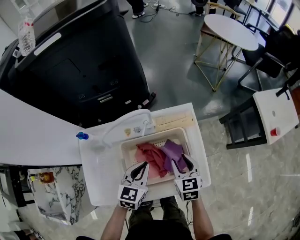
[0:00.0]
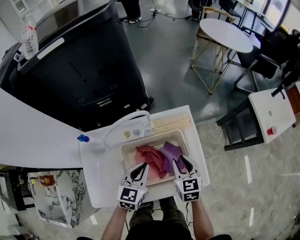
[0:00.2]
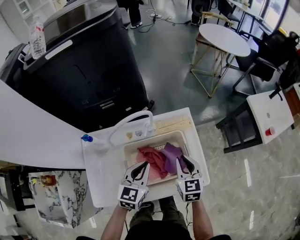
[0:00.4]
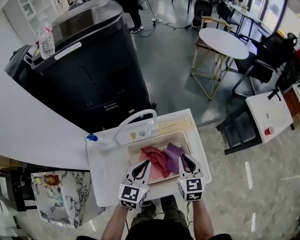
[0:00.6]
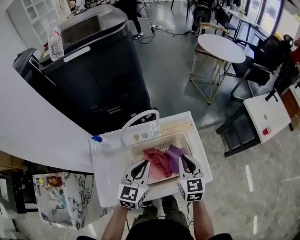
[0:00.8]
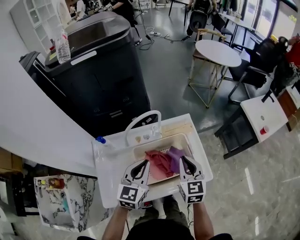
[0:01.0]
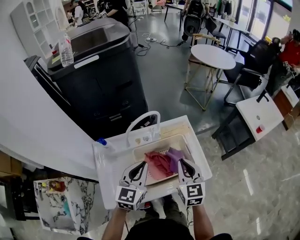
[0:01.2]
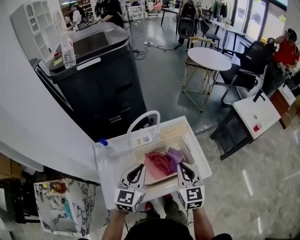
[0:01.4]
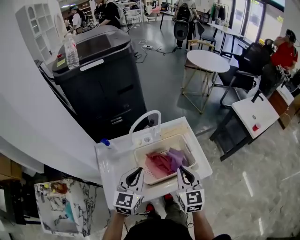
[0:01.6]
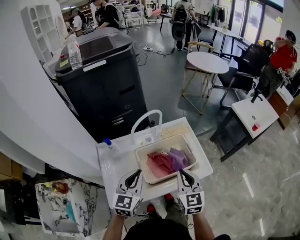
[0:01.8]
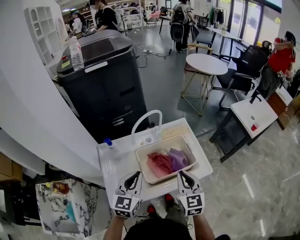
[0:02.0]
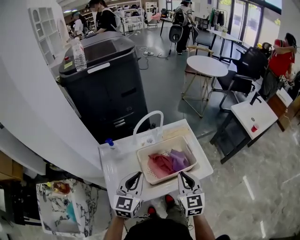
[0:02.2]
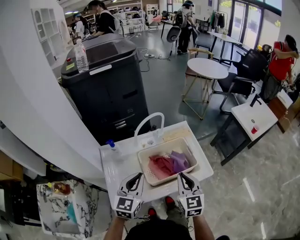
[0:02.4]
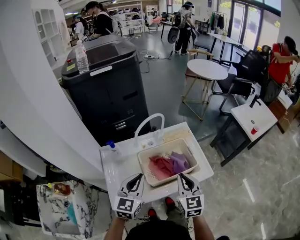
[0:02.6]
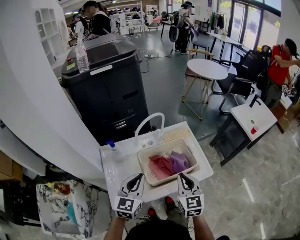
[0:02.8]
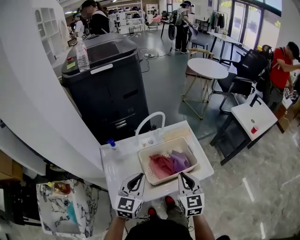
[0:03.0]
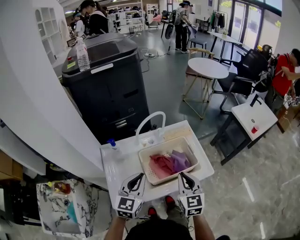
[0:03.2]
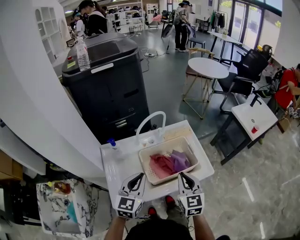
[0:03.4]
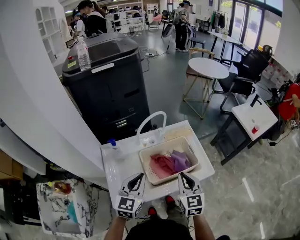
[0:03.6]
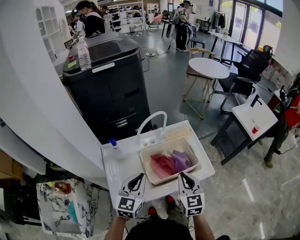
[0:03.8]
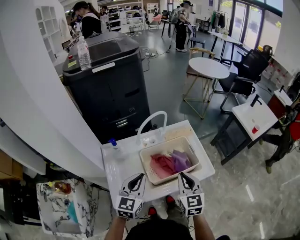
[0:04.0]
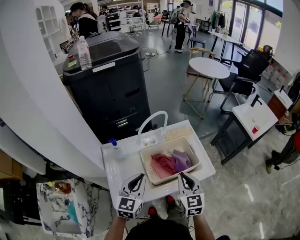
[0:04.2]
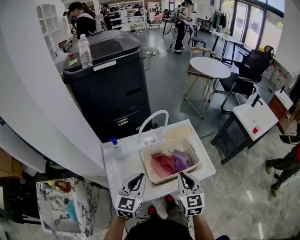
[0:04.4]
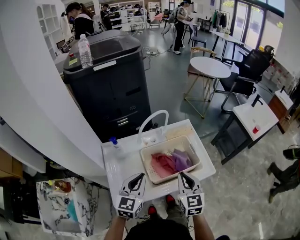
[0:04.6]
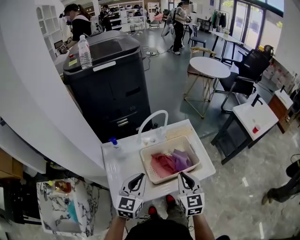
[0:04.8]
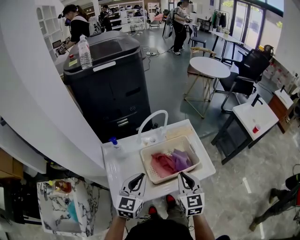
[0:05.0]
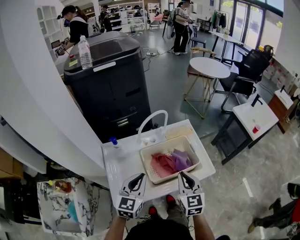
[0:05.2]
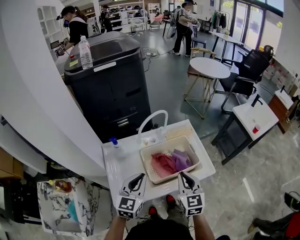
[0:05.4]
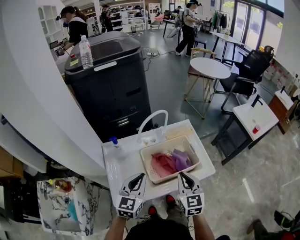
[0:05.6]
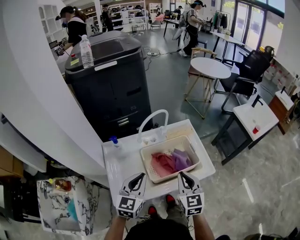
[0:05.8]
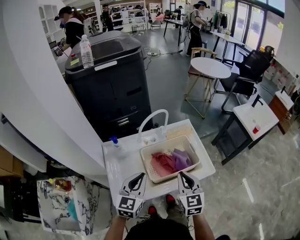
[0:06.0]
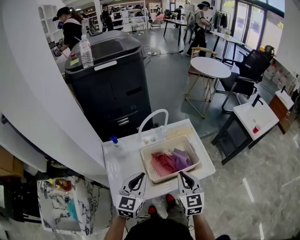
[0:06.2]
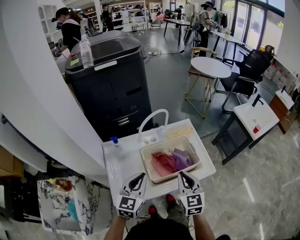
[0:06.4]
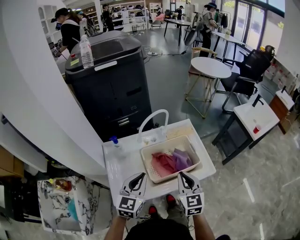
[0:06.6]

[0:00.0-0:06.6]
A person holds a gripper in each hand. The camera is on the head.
0:00.0 to 0:01.6: The right gripper travels upward and backward by approximately 20 cm, swivels roughly 20 degrees, and closes its fingers; the left gripper is displaced upward, backward and to the left by roughly 20 cm.
0:01.6 to 0:05.0: The grippers move only a little.
0:05.0 to 0:06.6: Neither gripper changes place.

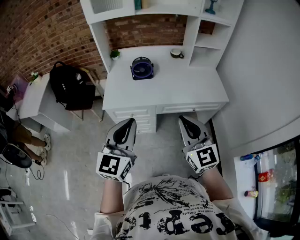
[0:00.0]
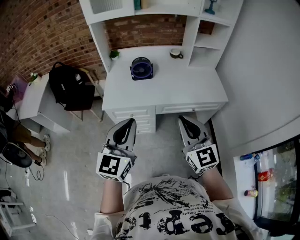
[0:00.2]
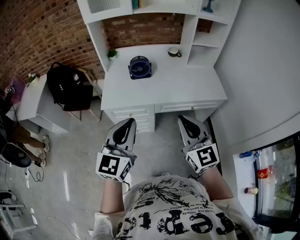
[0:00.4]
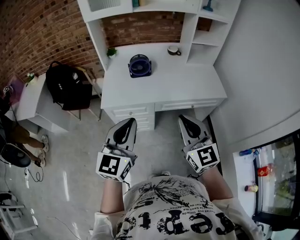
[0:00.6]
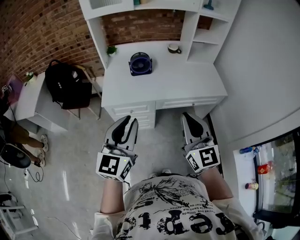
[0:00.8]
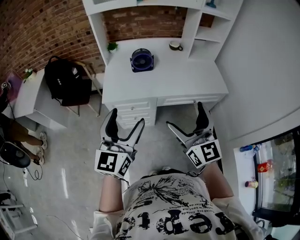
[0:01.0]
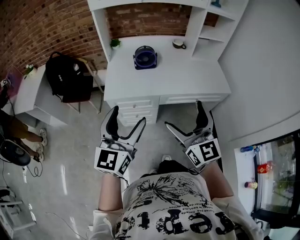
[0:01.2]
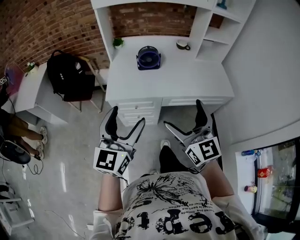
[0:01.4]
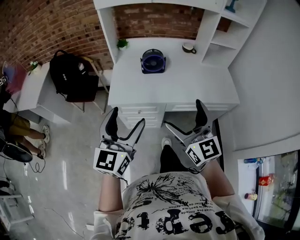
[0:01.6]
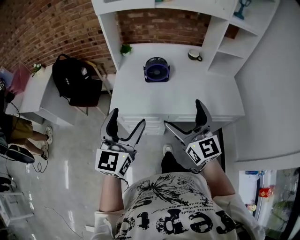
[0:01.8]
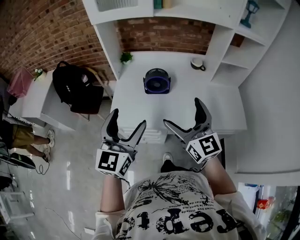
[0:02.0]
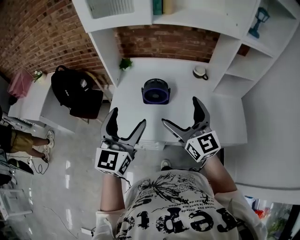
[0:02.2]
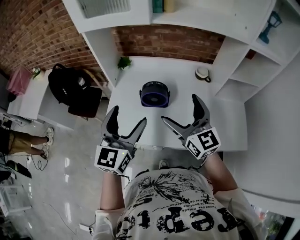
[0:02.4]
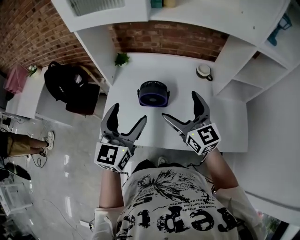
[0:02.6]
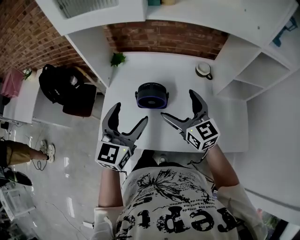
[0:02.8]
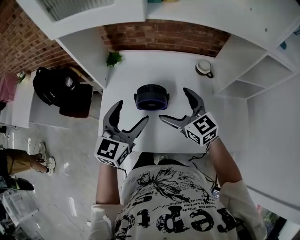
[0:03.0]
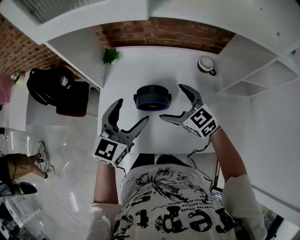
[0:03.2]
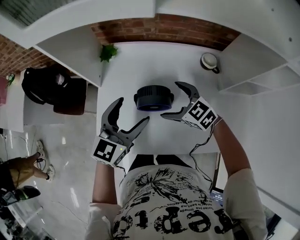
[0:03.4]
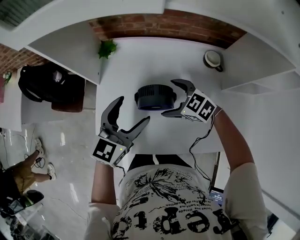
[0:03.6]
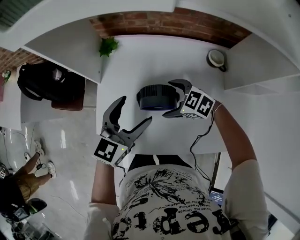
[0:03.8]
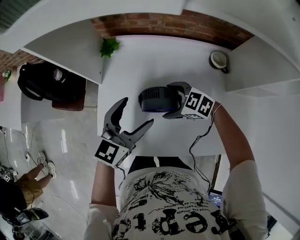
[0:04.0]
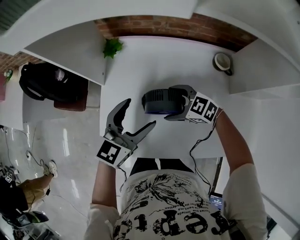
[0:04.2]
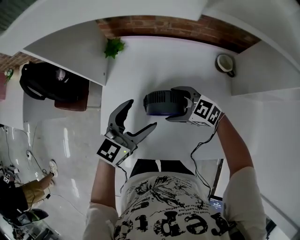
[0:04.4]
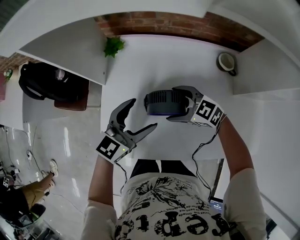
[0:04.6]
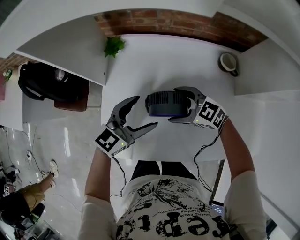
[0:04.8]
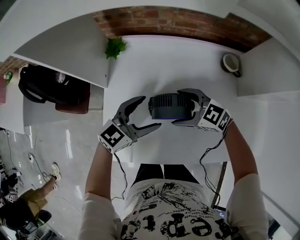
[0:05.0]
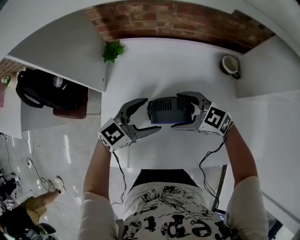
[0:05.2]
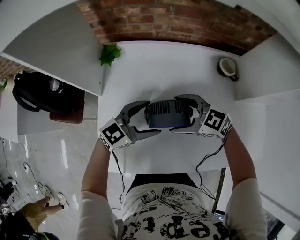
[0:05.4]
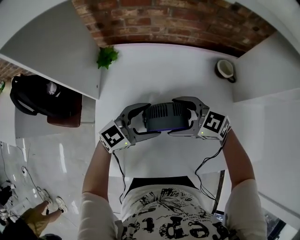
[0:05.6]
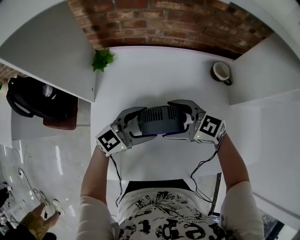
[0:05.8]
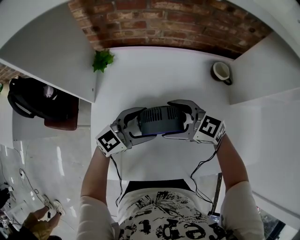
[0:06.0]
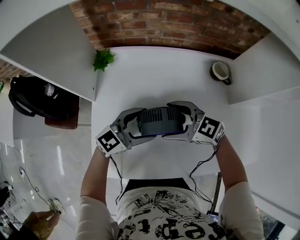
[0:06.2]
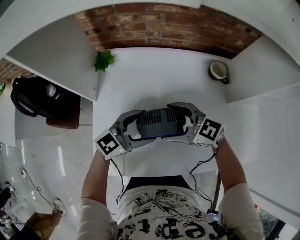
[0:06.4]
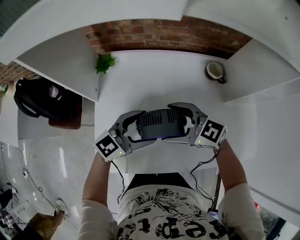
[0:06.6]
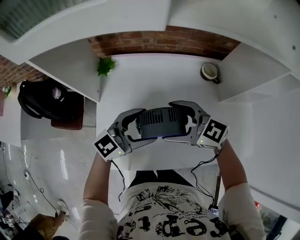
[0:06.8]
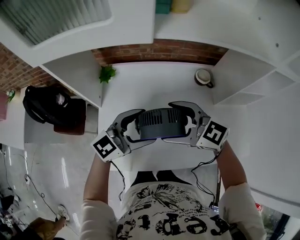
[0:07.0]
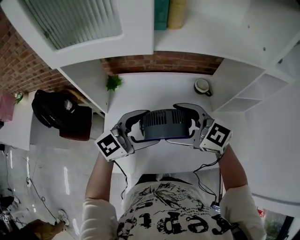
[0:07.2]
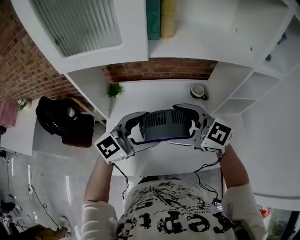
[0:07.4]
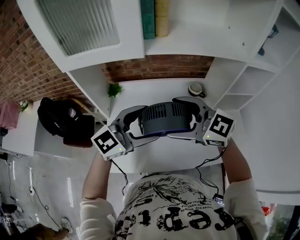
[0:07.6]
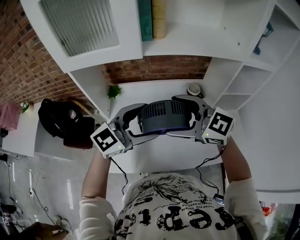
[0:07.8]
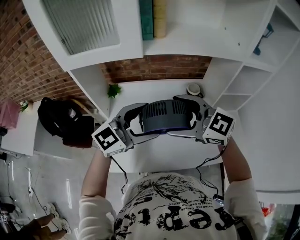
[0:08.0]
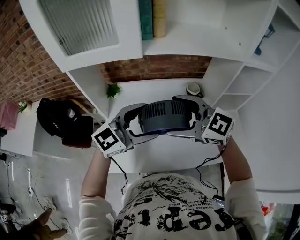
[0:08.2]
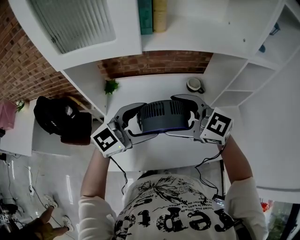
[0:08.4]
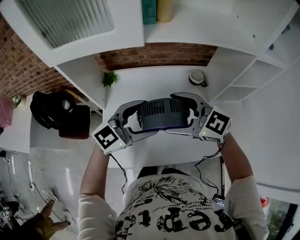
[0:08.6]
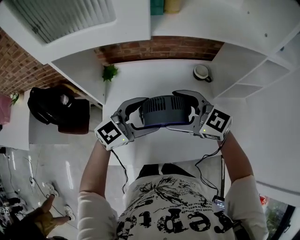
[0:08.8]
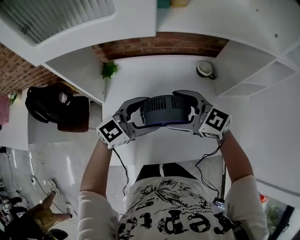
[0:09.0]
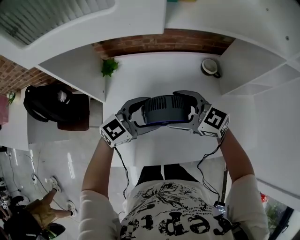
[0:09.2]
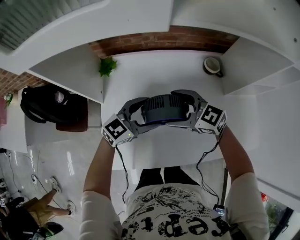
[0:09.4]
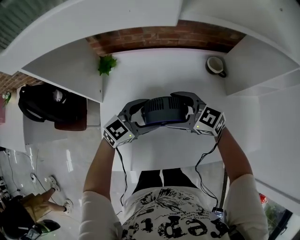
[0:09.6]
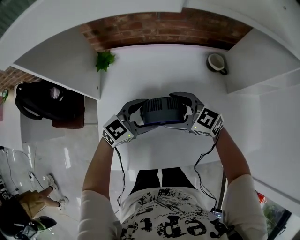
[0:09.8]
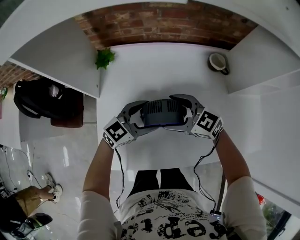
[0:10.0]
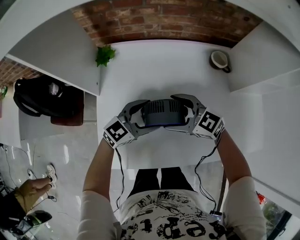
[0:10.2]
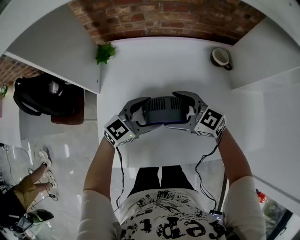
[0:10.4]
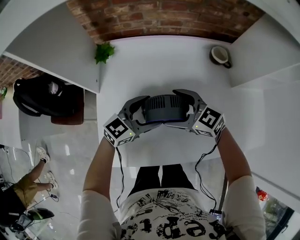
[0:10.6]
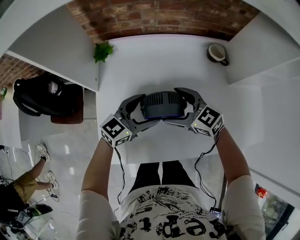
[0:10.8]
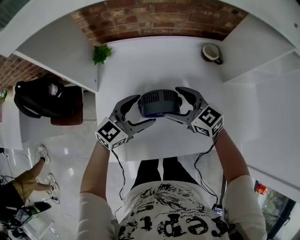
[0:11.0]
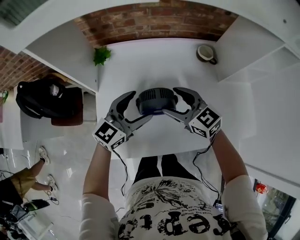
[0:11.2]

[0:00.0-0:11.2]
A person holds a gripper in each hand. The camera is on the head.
0:00.0 to 0:01.6: The right gripper travels forward and to the left by roughly 10 cm, and opens up. Meanwhile the left gripper moves to the left and forward, approximately 10 cm, and opens.
0:01.6 to 0:03.2: The pair of grippers is taken forward, roughly 50 cm. The right gripper tips its fingers downward by approximately 30 degrees.
0:03.2 to 0:04.8: The two grippers go roughly 10 cm downward. The right gripper turns by approximately 20 degrees, while the left gripper changes its angle by roughly 20 degrees.
0:04.8 to 0:06.4: The left gripper moves roughly 5 cm.
0:06.4 to 0:08.0: The two grippers go approximately 30 cm upward. The right gripper turns by about 20 degrees.
0:08.0 to 0:09.6: The grippers both shift downward by roughly 25 cm.
0:09.6 to 0:11.2: The left gripper goes roughly 5 cm upward. The right gripper changes place by approximately 5 cm.

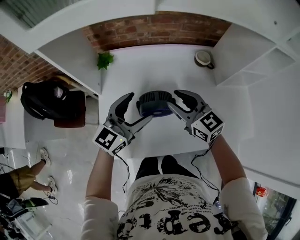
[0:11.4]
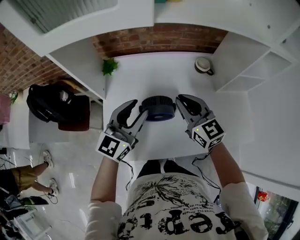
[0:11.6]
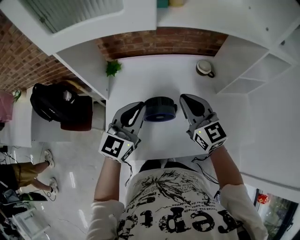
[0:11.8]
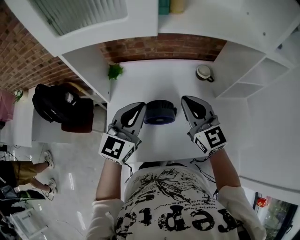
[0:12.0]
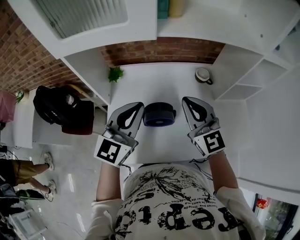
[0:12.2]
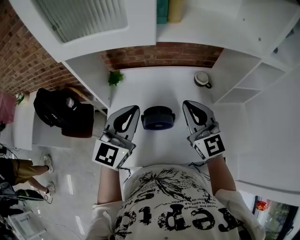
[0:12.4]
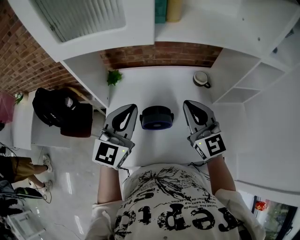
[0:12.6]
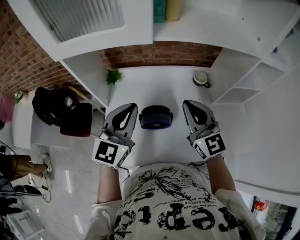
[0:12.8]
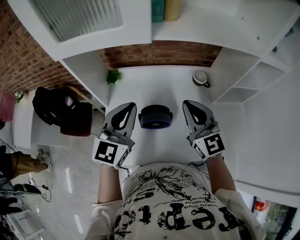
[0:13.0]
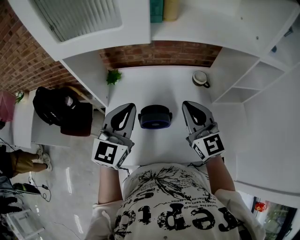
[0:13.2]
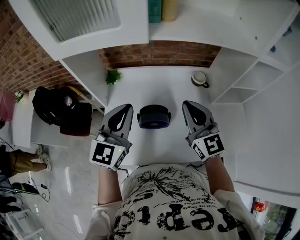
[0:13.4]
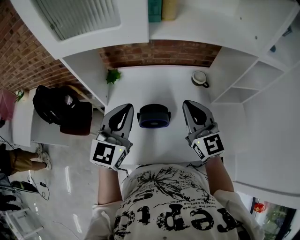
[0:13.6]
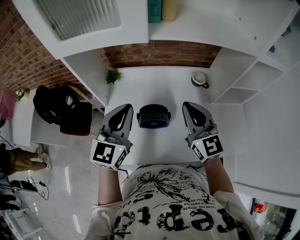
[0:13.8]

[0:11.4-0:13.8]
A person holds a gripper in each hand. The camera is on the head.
0:11.4 to 0:12.6: Both grippers travel together upward, roughly 15 cm. The right gripper swivels approximately 20 degrees. Meanwhile the left gripper rotates about 20 degrees, and closes up.
0:12.6 to 0:13.8: The grippers make only small movements.

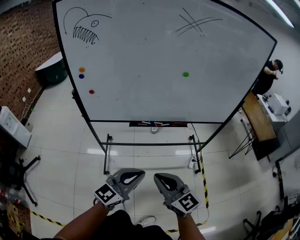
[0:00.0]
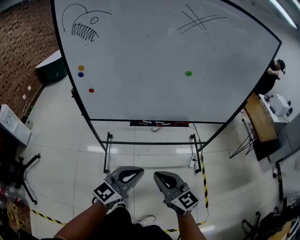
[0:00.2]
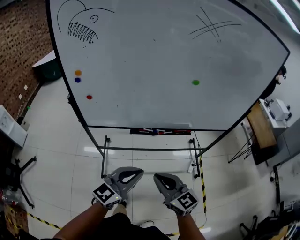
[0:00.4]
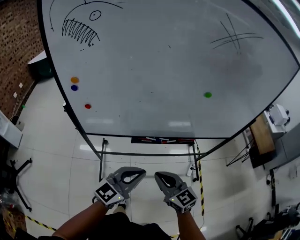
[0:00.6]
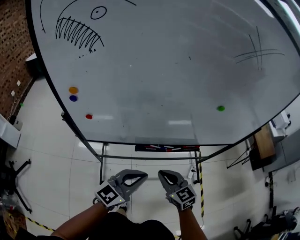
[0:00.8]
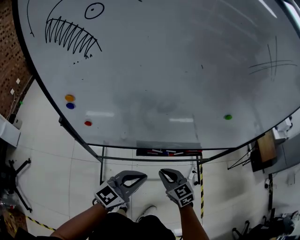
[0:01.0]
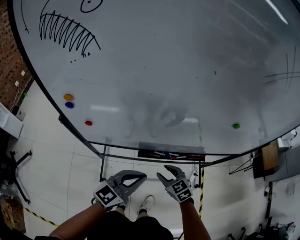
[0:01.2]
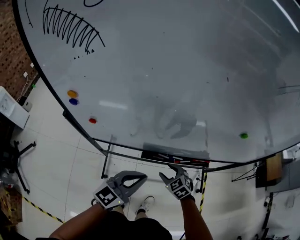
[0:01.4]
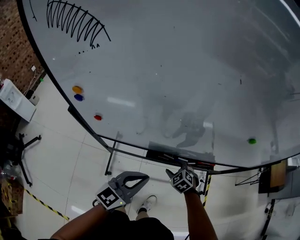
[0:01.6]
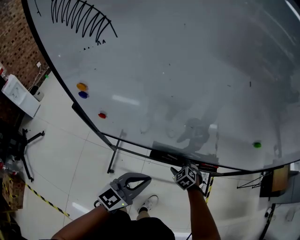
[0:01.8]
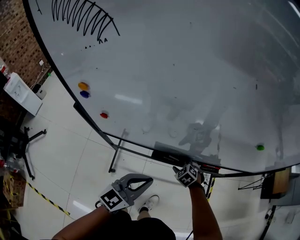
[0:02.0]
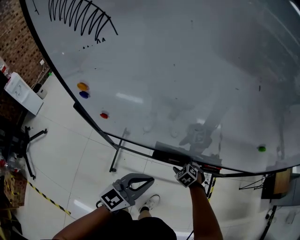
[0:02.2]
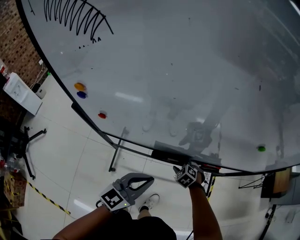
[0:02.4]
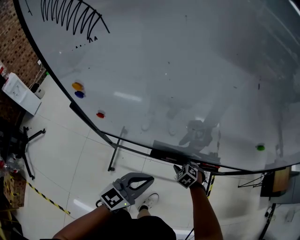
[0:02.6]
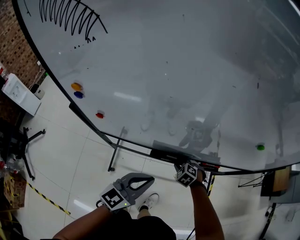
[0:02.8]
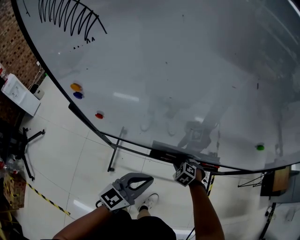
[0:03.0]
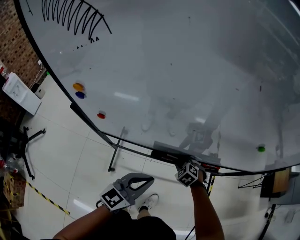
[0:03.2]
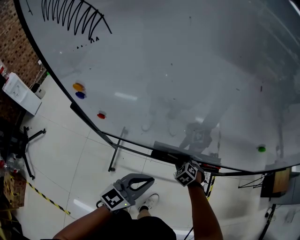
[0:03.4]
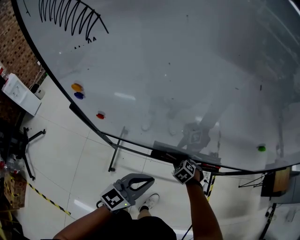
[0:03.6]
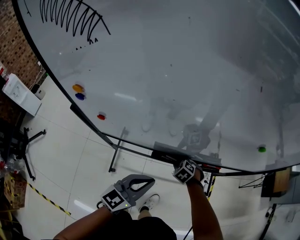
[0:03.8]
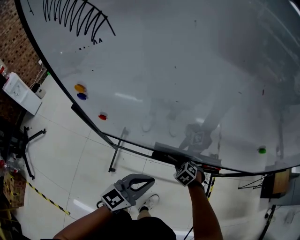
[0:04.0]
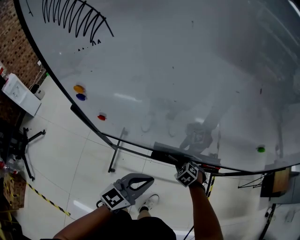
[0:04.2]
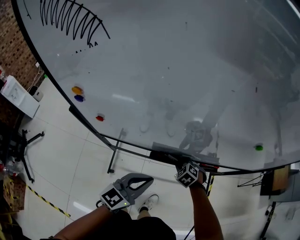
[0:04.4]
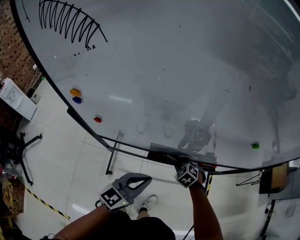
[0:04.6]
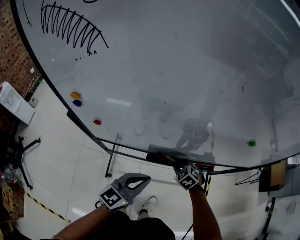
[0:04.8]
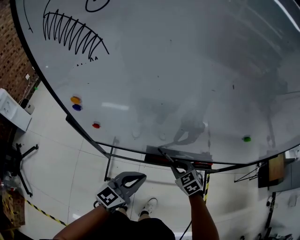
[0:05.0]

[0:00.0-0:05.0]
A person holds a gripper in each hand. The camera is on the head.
0:00.0 to 0:01.6: The right gripper moves forward and downward, about 50 cm, tilts its fingers some 50 degrees downward, and opens up; the left gripper goes about 35 cm forward and to the left.
0:01.6 to 0:03.4: The right gripper shifts by approximately 5 cm, and closes up.
0:03.4 to 0:05.0: The right gripper shifts some 10 cm upward, and changes its angle by approximately 20 degrees.
